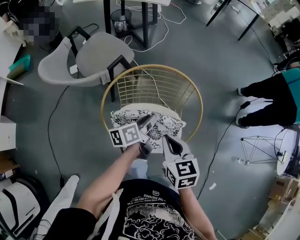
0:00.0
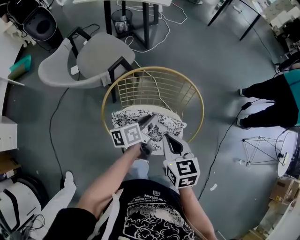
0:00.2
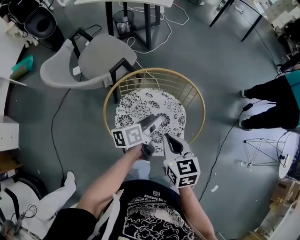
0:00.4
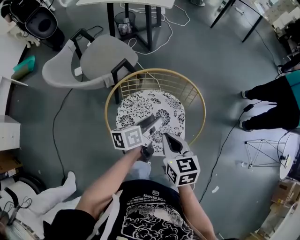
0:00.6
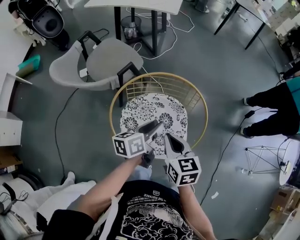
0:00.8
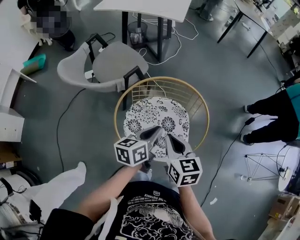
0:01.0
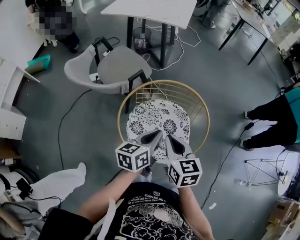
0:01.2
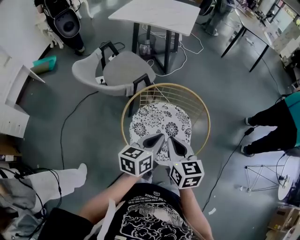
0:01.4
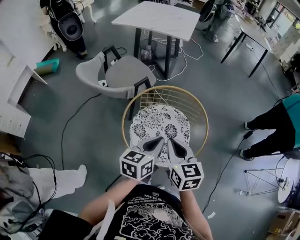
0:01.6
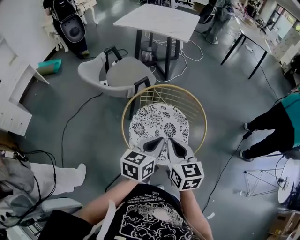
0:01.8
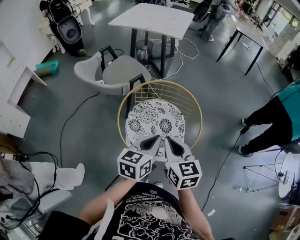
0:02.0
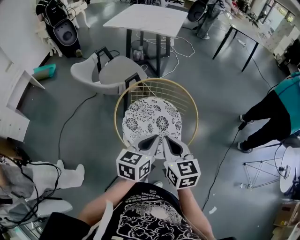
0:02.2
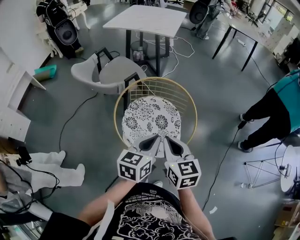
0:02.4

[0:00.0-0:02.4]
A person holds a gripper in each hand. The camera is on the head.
0:00.0 to 0:01.2: The right gripper shifts by about 5 cm. The left gripper shifts roughly 10 cm upward, rotates roughly 30 degrees, and opens and closes again.
0:01.2 to 0:02.4: The grippers both shift backward, upward and to the right by about 10 cm.

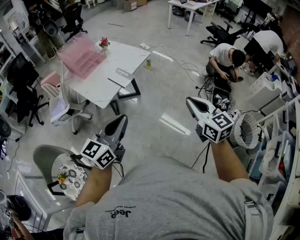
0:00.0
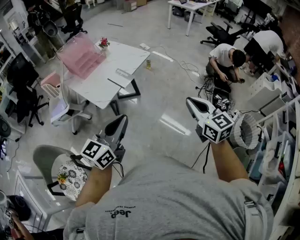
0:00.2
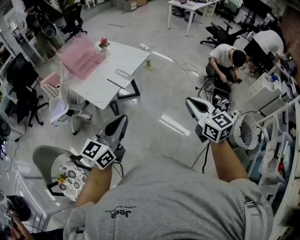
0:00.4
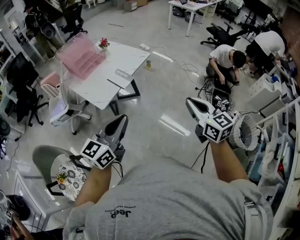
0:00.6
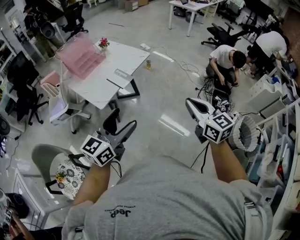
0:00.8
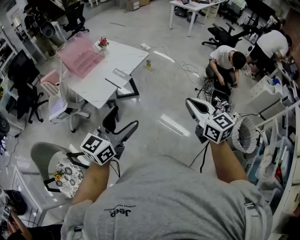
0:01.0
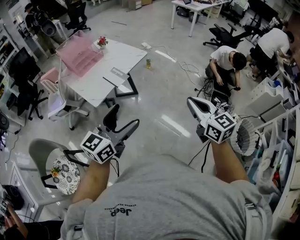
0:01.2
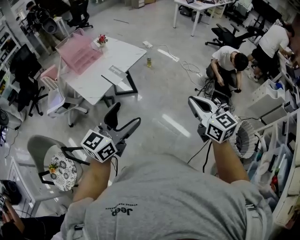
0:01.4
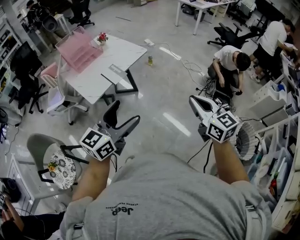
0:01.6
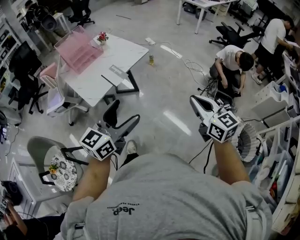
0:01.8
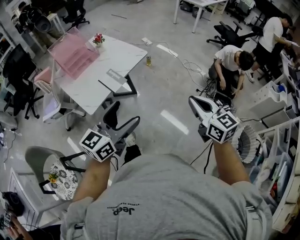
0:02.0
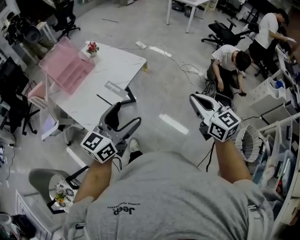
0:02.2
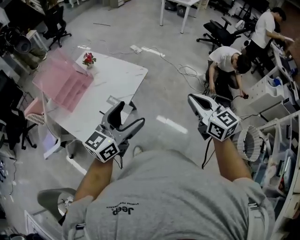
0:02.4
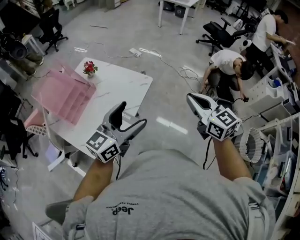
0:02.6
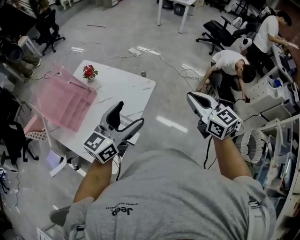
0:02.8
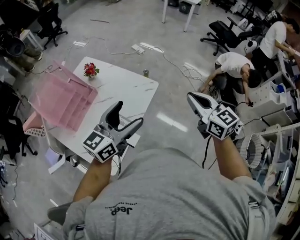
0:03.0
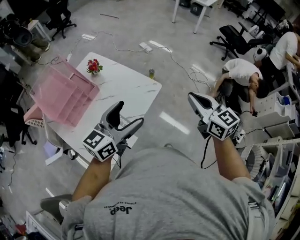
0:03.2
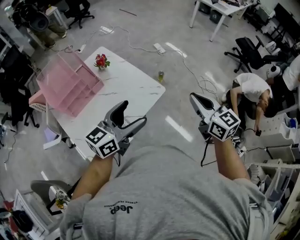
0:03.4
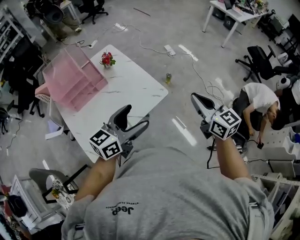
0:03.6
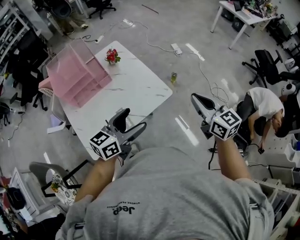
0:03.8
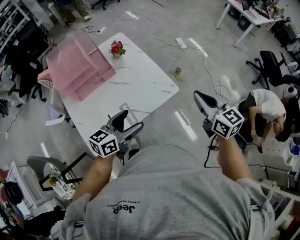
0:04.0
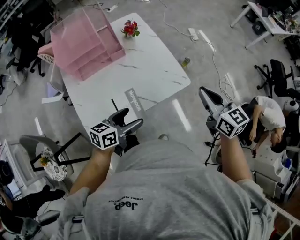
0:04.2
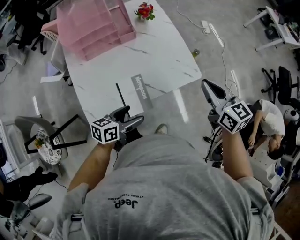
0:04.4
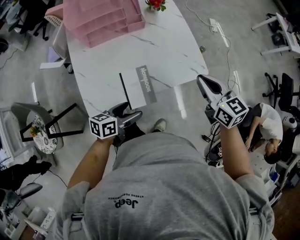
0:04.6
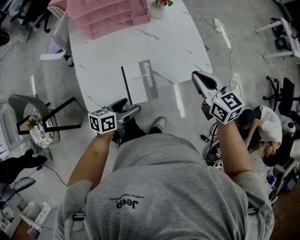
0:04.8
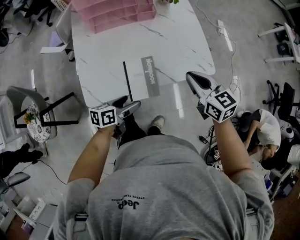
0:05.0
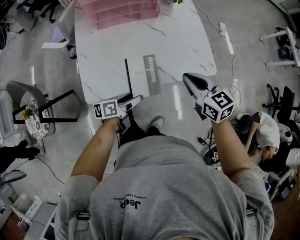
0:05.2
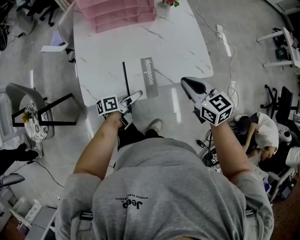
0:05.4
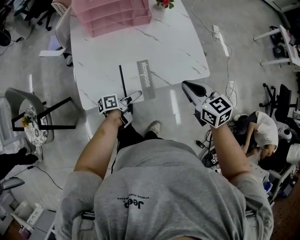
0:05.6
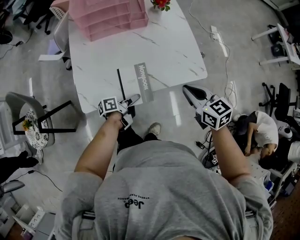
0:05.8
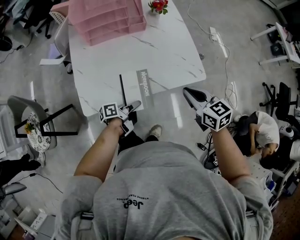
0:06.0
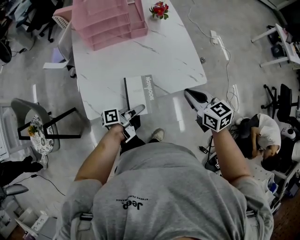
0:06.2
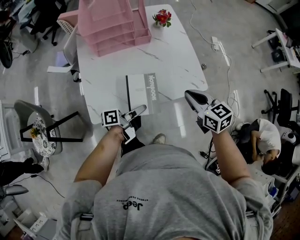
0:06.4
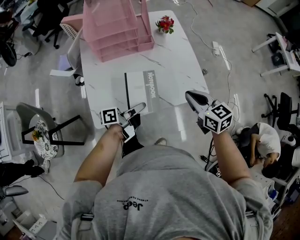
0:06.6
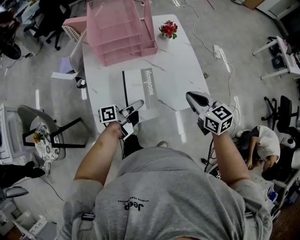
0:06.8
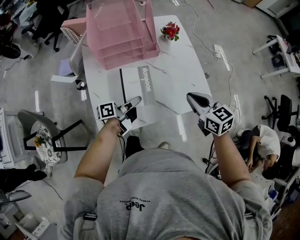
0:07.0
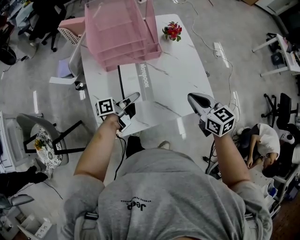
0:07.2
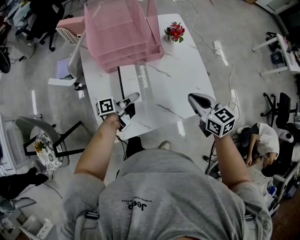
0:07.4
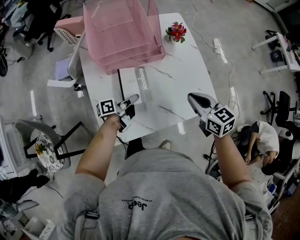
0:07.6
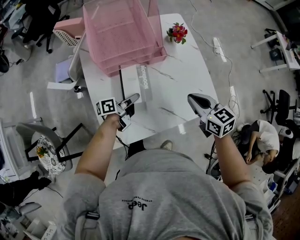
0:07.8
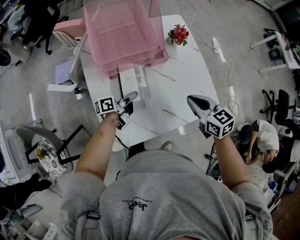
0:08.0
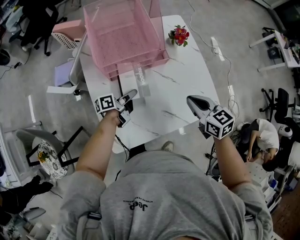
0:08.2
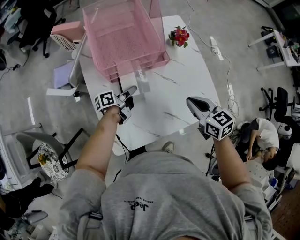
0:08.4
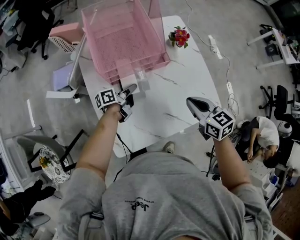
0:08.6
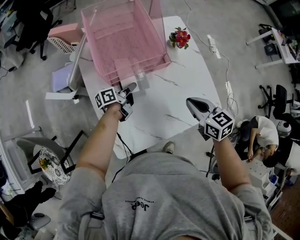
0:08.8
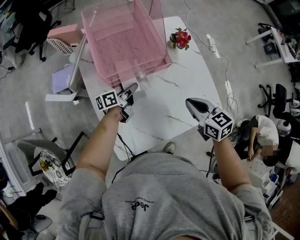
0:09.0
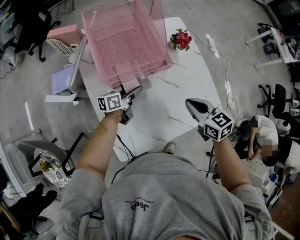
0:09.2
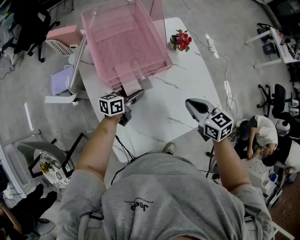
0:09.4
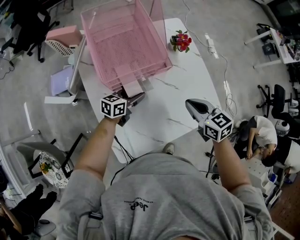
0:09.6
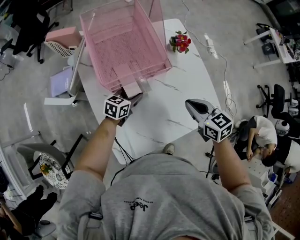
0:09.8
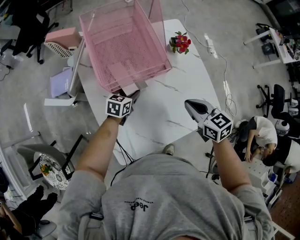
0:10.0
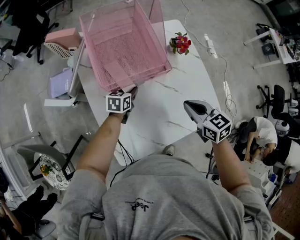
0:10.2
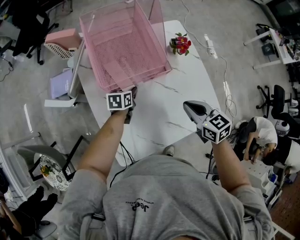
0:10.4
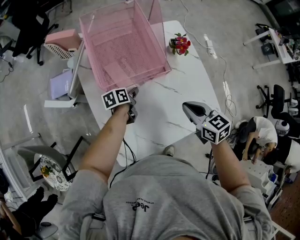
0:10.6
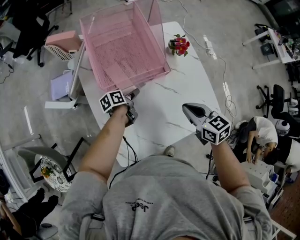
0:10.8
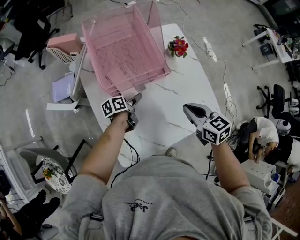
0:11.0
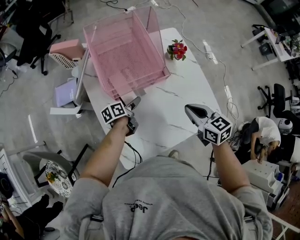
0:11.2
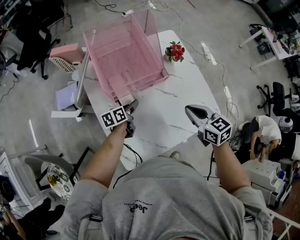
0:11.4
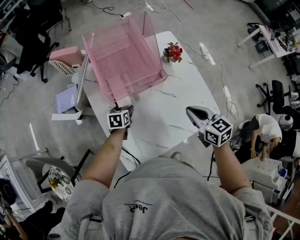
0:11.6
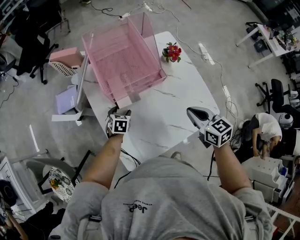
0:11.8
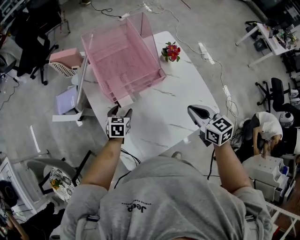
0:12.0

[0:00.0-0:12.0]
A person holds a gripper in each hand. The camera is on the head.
0:00.0 to 0:01.6: The two grippers go some 10 cm to the right. The left gripper opens its fingers.
0:01.6 to 0:03.0: The pair of grippers is taken forward and to the left, roughly 50 cm.
0:03.0 to 0:04.4: The left gripper is displaced downward by about 25 cm, and changes its angle by approximately 50 degrees. Meanwhile the right gripper changes place by roughly 20 cm, and rotates about 30 degrees.
0:04.4 to 0:06.0: The left gripper travels downward by approximately 15 cm, rotates around the line of its fingers by approximately 50 degrees, counterclockwise from behind, and closes its fingers. Meanwhile the right gripper goes about 15 cm downward and to the left.
0:06.0 to 0:07.6: Both grippers move forward and to the left, about 20 cm.
0:07.6 to 0:09.0: The left gripper shifts roughly 15 cm forward and to the left. Meanwhile the right gripper heads to the left, covering about 5 cm.
0:09.0 to 0:10.4: The left gripper moves approximately 5 cm, and tips its fingers downward by roughly 30 degrees.
0:10.4 to 0:12.0: The right gripper moves about 5 cm, while the left gripper heads backward and to the left, covering roughly 10 cm, rotates roughly 20 degrees, and opens its fingers.

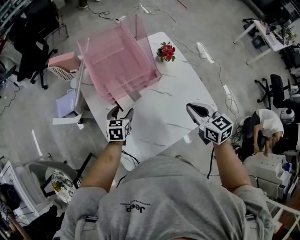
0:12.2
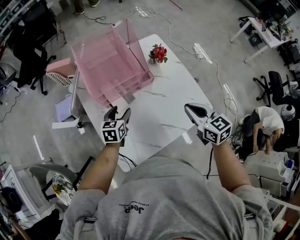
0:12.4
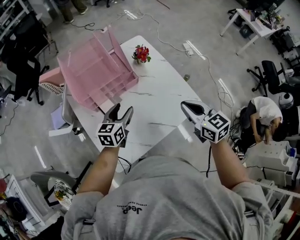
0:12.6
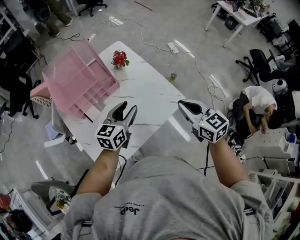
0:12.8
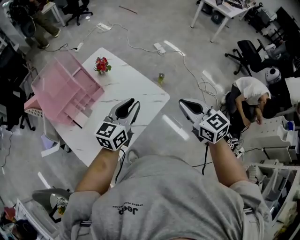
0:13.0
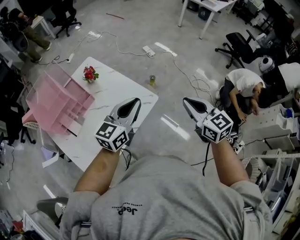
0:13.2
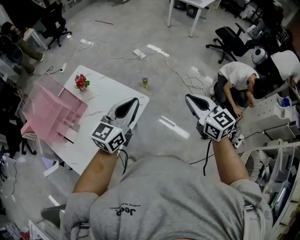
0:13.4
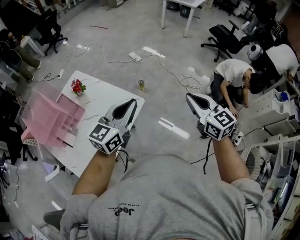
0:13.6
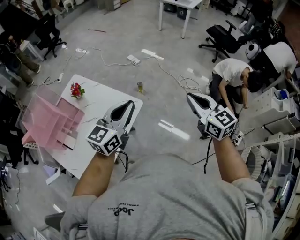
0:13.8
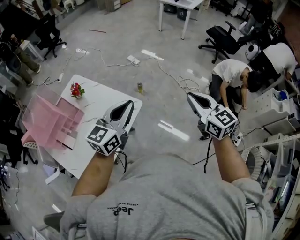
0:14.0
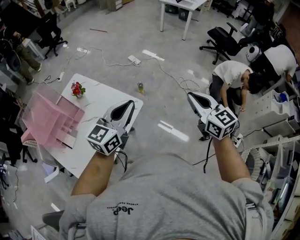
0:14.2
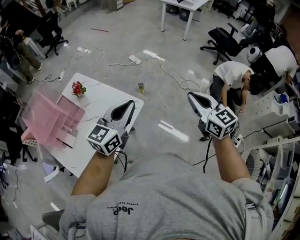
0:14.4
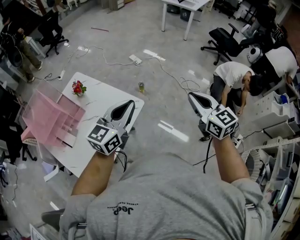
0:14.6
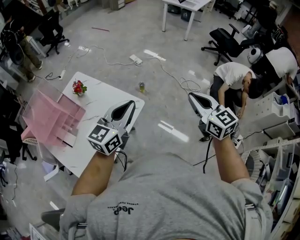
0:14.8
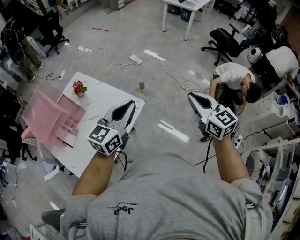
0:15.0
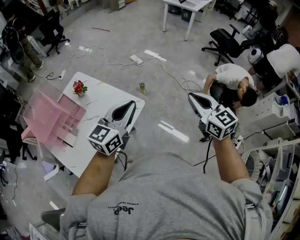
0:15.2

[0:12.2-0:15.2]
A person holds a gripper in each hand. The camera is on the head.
0:12.2 to 0:13.8: The pair of grippers is taken roughly 50 cm. The right gripper turns by approximately 40 degrees, while the left gripper tips its fingers upward by roughly 40 degrees, and closes up.
0:13.8 to 0:15.2: The two grippers keep their place.

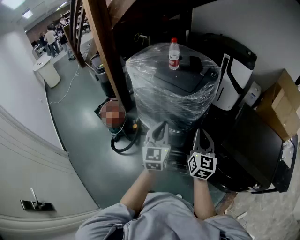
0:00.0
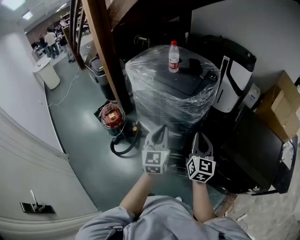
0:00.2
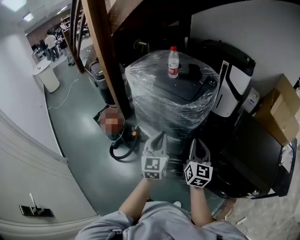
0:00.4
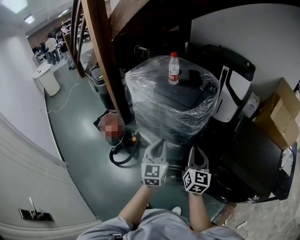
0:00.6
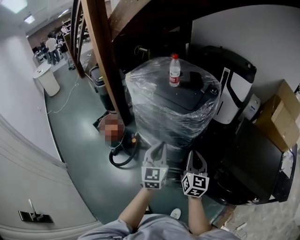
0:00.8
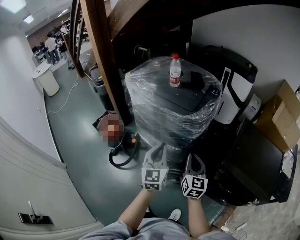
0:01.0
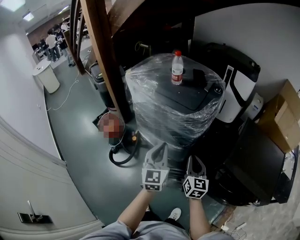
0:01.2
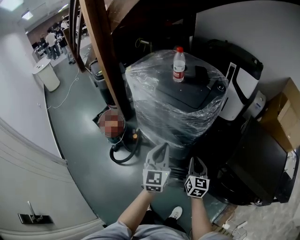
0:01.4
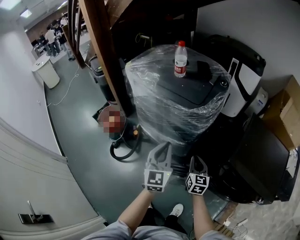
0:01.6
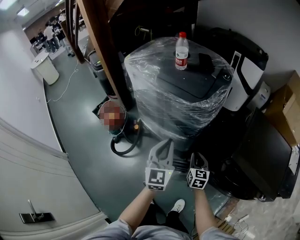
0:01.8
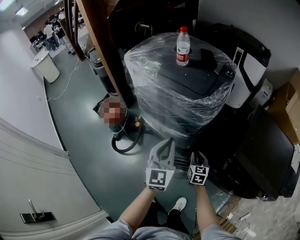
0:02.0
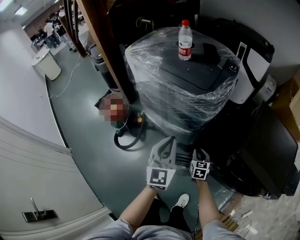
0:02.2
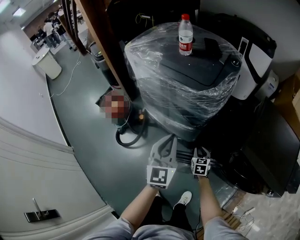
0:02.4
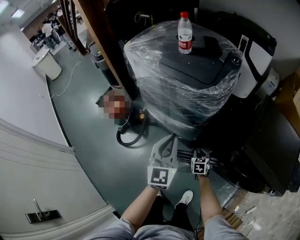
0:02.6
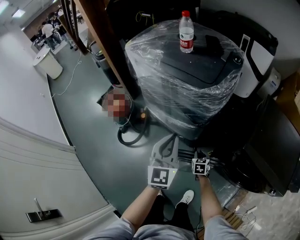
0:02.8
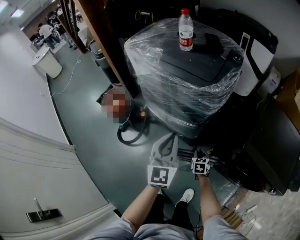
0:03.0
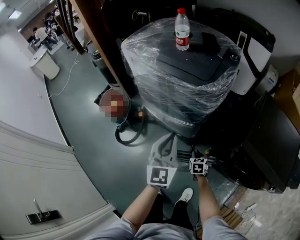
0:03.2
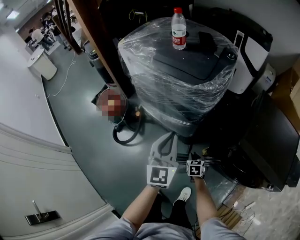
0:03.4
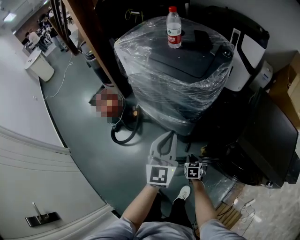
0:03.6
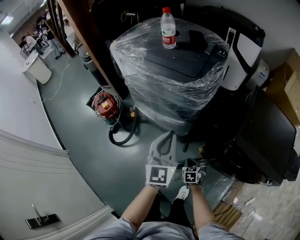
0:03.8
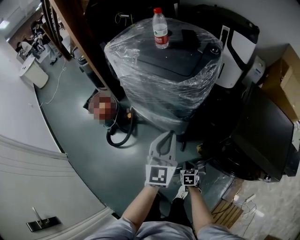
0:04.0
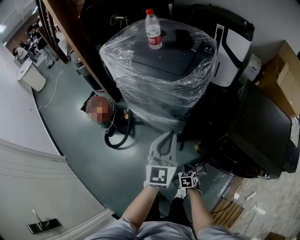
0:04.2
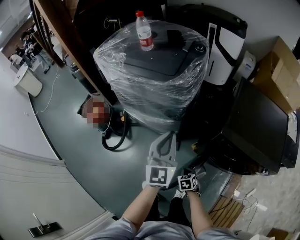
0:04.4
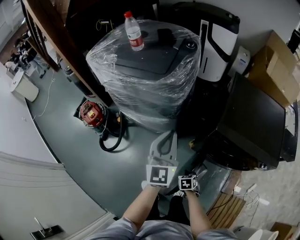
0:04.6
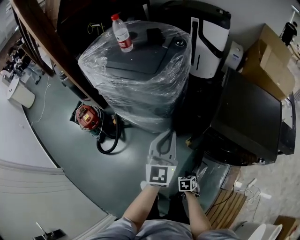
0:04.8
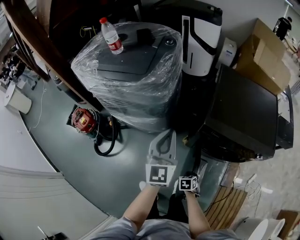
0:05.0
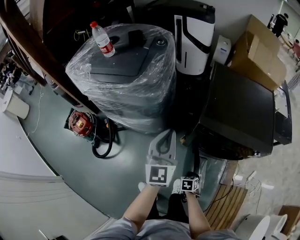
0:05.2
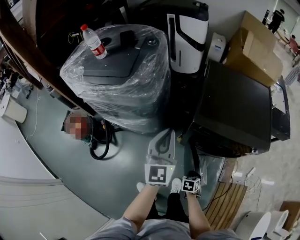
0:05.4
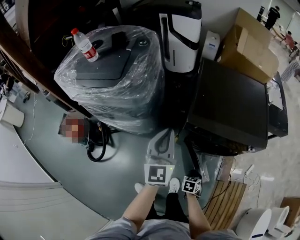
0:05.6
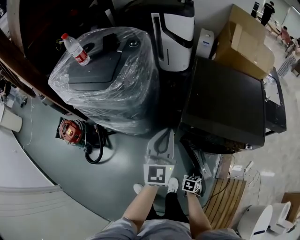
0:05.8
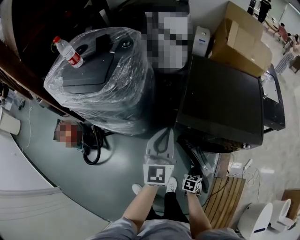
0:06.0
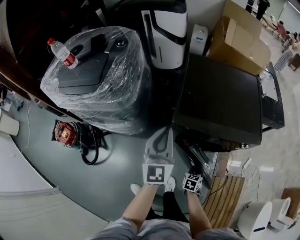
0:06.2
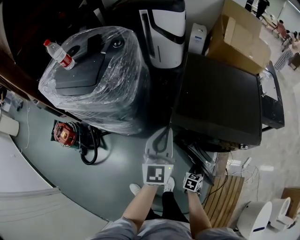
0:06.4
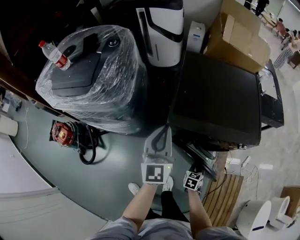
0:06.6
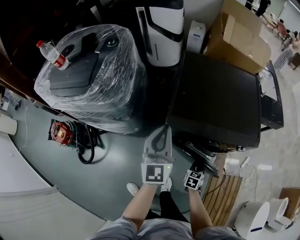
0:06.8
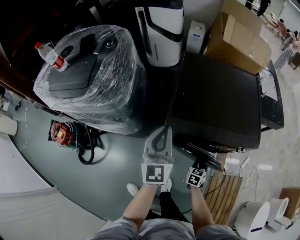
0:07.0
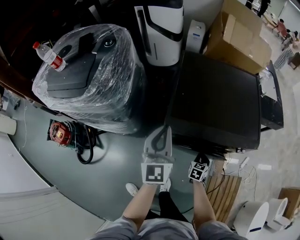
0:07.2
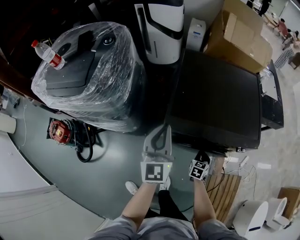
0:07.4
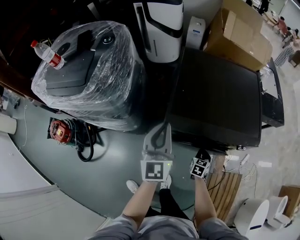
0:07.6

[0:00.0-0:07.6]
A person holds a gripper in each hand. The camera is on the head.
0:00.0 to 0:01.6: The left gripper goes some 5 cm downward. The right gripper is displaced downward by about 20 cm.
0:01.6 to 0:03.0: The right gripper moves downward, some 25 cm, and tilts its fingers about 30 degrees downward.
0:03.0 to 0:04.6: The left gripper goes approximately 15 cm to the right. Meanwhile the right gripper moves backward and to the right, approximately 20 cm.
0:04.6 to 0:06.0: The left gripper changes place by about 20 cm; the right gripper changes place by roughly 25 cm, and changes its angle by approximately 30 degrees.
0:06.0 to 0:07.6: The right gripper heads forward and to the right, covering approximately 15 cm, while the left gripper is displaced forward by about 5 cm.
